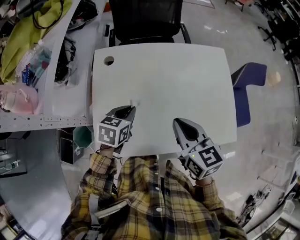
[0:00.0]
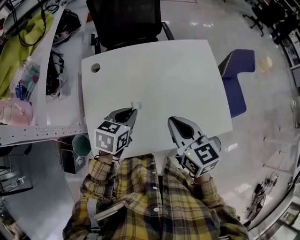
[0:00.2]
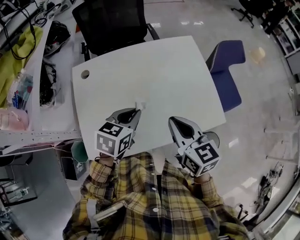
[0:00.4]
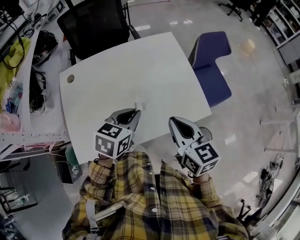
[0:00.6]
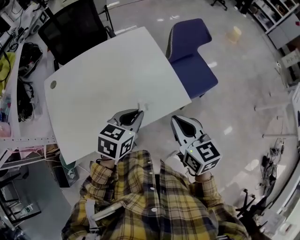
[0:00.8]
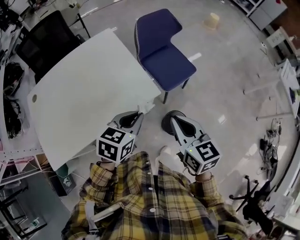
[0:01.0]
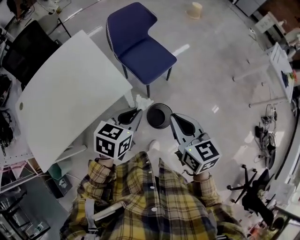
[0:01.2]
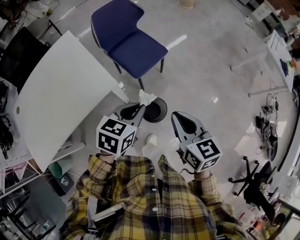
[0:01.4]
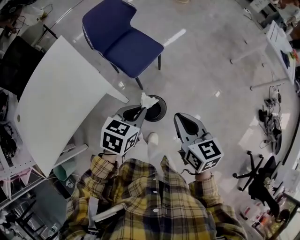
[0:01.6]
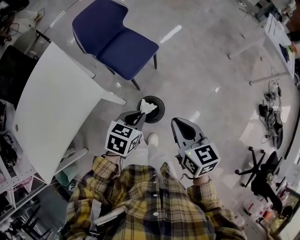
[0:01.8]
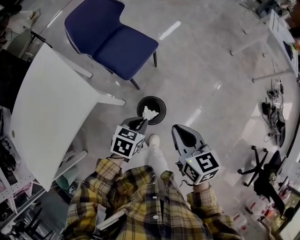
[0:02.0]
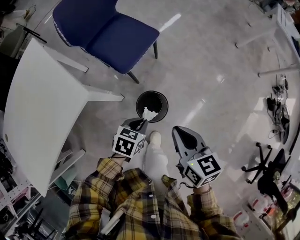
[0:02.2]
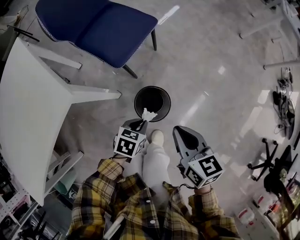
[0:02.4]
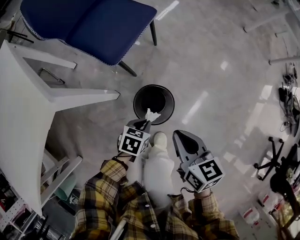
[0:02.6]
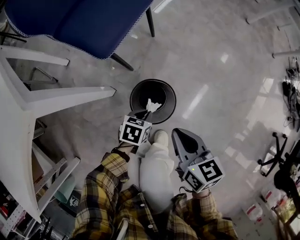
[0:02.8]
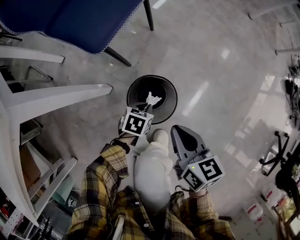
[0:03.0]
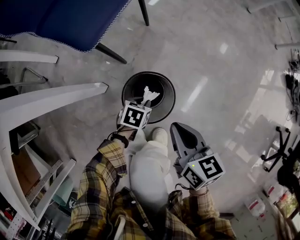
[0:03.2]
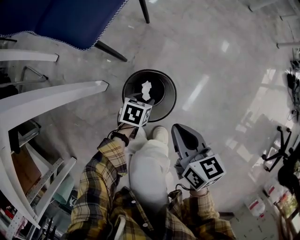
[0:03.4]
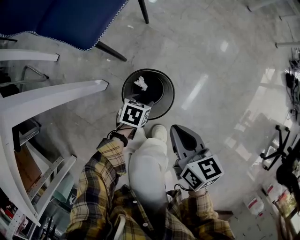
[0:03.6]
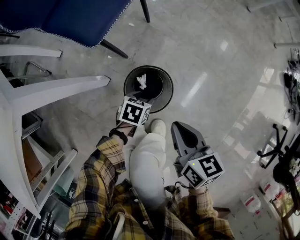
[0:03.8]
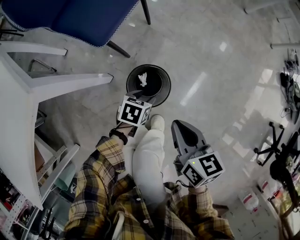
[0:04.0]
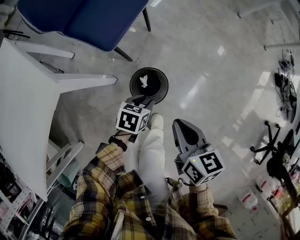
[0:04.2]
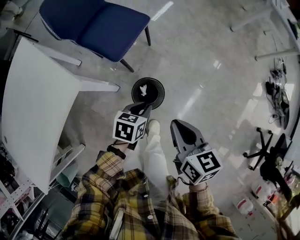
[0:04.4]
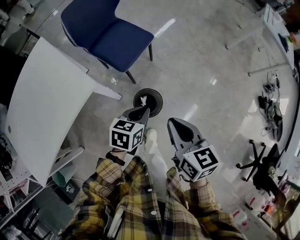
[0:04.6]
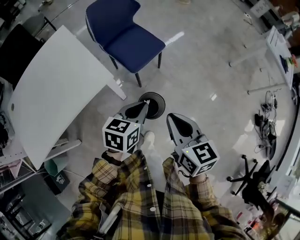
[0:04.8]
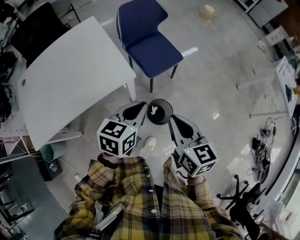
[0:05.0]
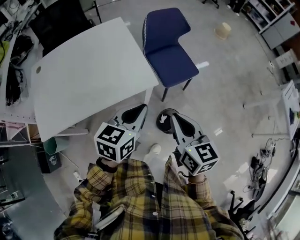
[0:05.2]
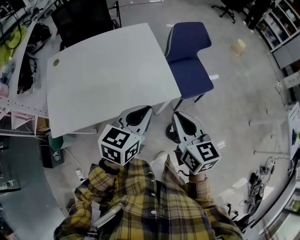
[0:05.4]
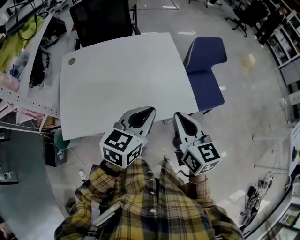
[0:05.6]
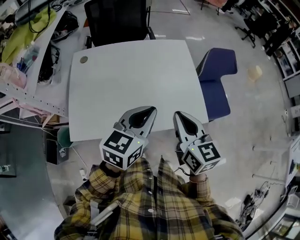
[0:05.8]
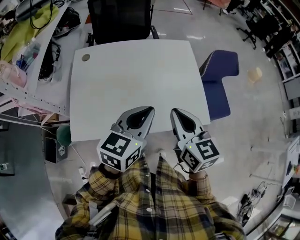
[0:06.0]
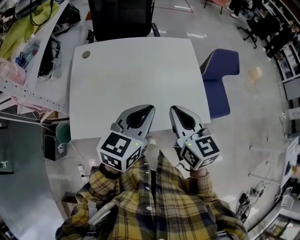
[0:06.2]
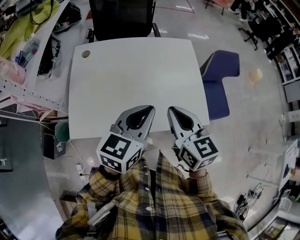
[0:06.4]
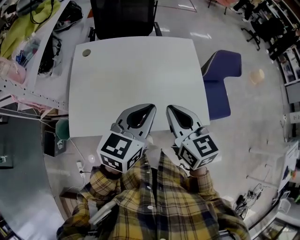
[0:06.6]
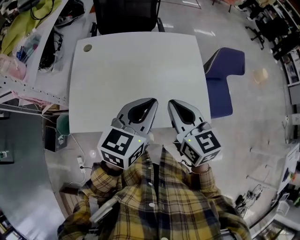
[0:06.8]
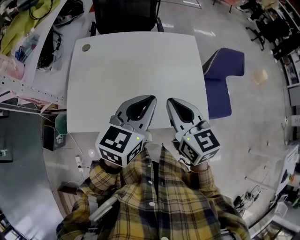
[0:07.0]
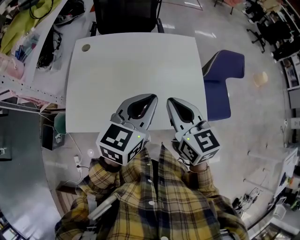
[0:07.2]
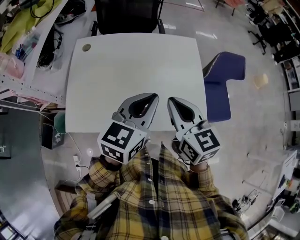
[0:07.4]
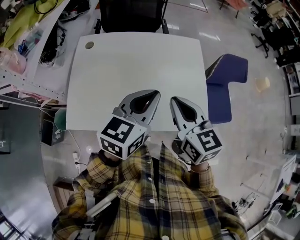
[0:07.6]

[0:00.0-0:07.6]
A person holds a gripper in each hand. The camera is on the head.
0:00.0 to 0:01.6: The pair of grippers is taken roughly 70 cm. The right gripper turns by approximately 40 degrees. The left gripper turns by roughly 50 degrees.
0:01.6 to 0:03.0: Both grippers move downward, roughly 50 cm. The left gripper swivels roughly 30 degrees; the right gripper changes its angle by approximately 20 degrees.
0:03.0 to 0:04.6: Both grippers travel together upward, some 40 cm. The left gripper swivels approximately 30 degrees, and opens, then closes again.
0:04.6 to 0:06.0: Both grippers are carried some 60 cm. The right gripper rotates about 50 degrees. Meanwhile the left gripper rotates roughly 50 degrees.
0:06.0 to 0:07.6: Both grippers travel together forward, about 5 cm.

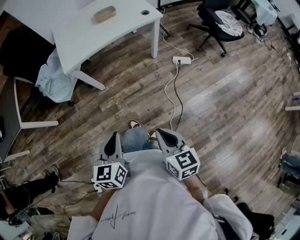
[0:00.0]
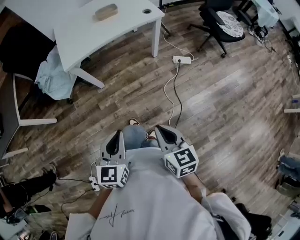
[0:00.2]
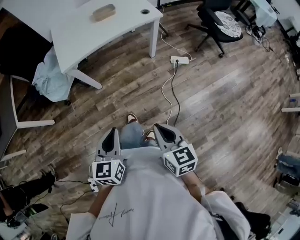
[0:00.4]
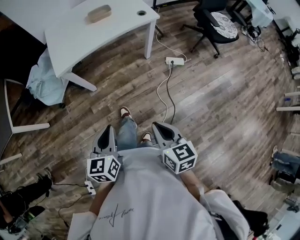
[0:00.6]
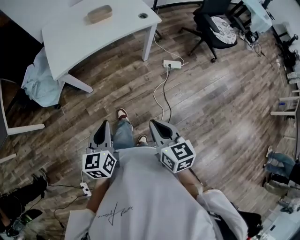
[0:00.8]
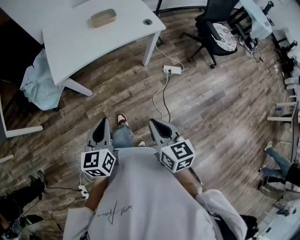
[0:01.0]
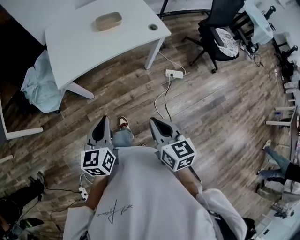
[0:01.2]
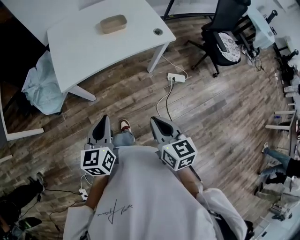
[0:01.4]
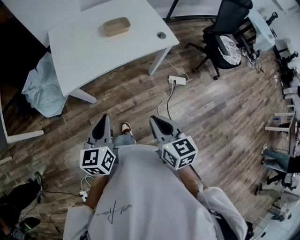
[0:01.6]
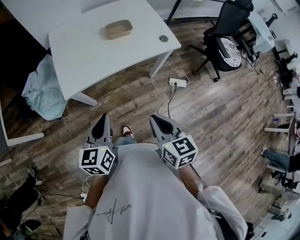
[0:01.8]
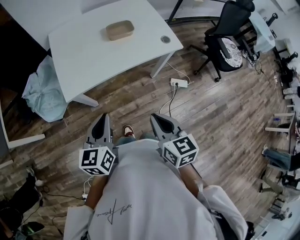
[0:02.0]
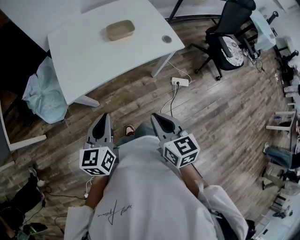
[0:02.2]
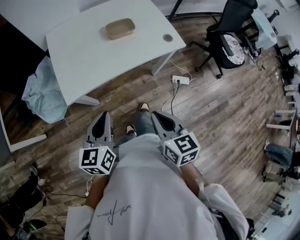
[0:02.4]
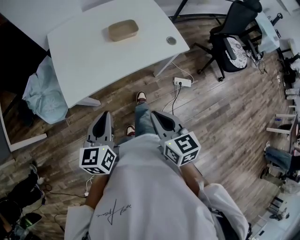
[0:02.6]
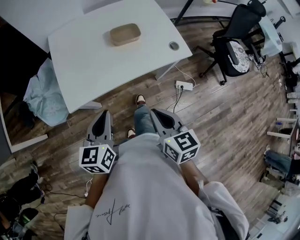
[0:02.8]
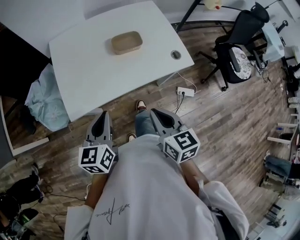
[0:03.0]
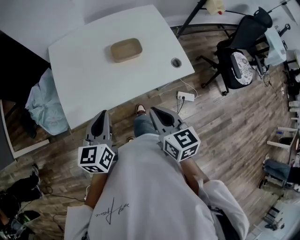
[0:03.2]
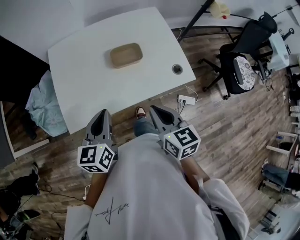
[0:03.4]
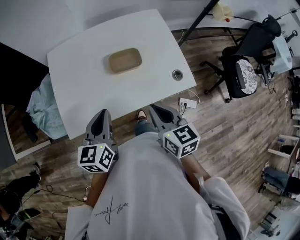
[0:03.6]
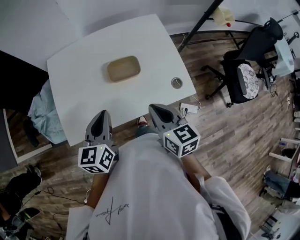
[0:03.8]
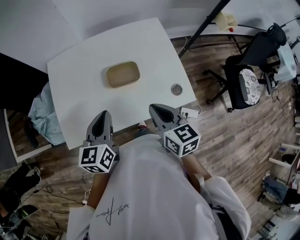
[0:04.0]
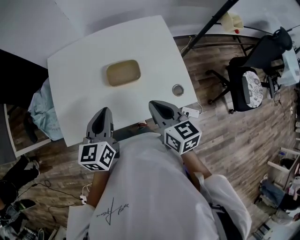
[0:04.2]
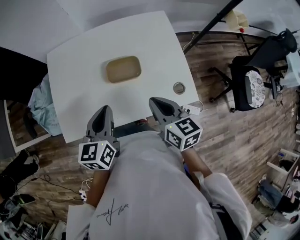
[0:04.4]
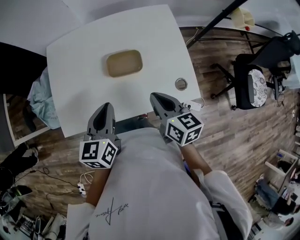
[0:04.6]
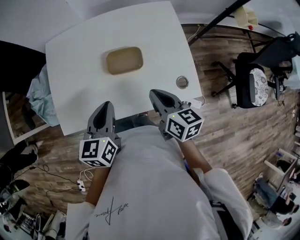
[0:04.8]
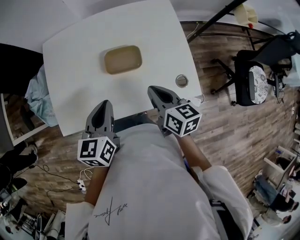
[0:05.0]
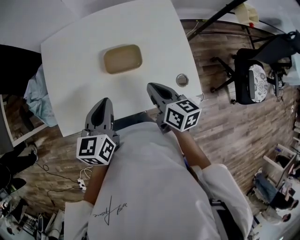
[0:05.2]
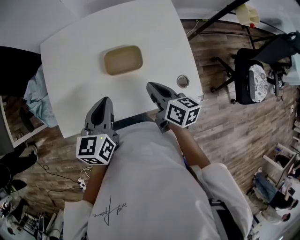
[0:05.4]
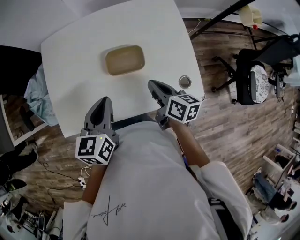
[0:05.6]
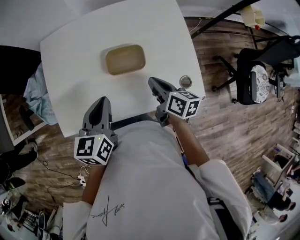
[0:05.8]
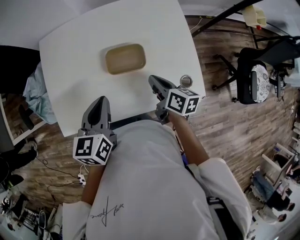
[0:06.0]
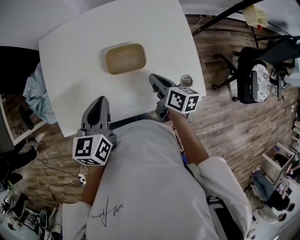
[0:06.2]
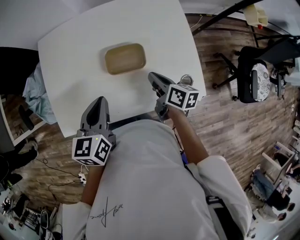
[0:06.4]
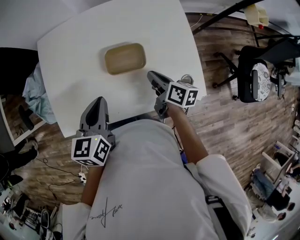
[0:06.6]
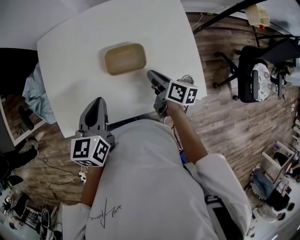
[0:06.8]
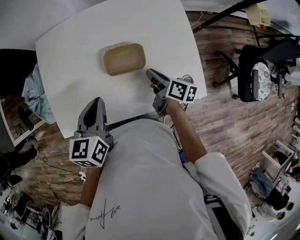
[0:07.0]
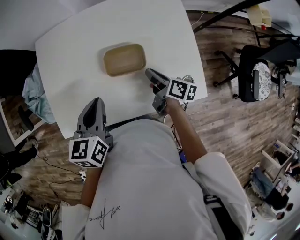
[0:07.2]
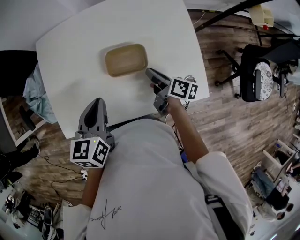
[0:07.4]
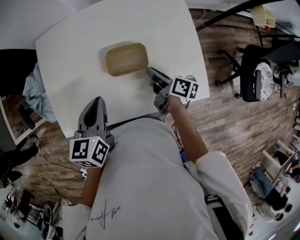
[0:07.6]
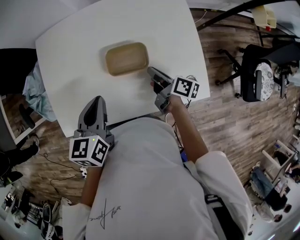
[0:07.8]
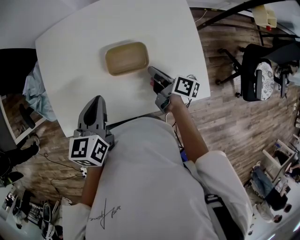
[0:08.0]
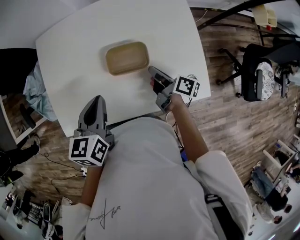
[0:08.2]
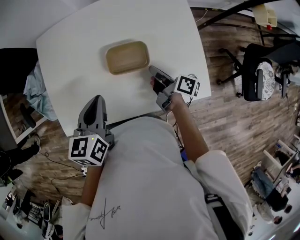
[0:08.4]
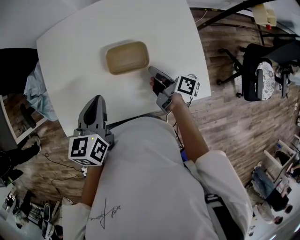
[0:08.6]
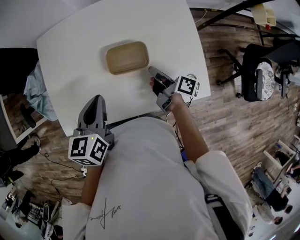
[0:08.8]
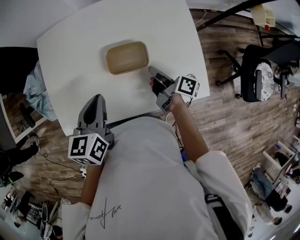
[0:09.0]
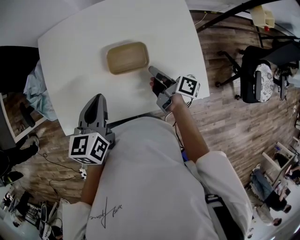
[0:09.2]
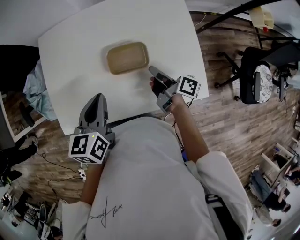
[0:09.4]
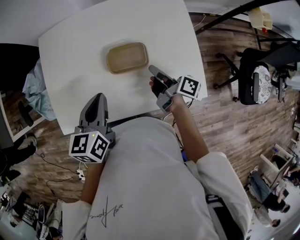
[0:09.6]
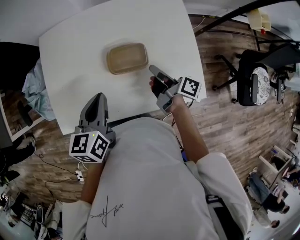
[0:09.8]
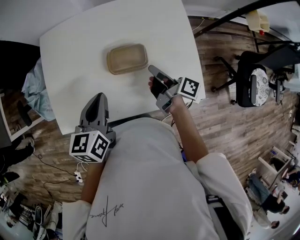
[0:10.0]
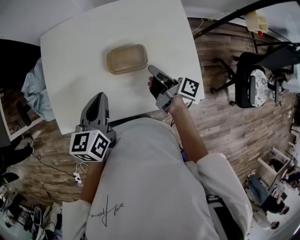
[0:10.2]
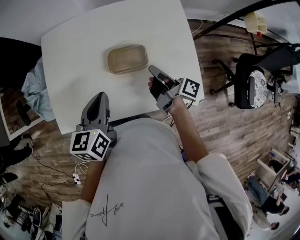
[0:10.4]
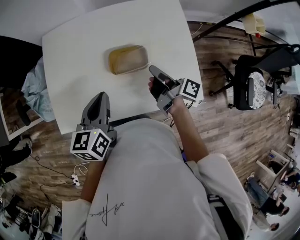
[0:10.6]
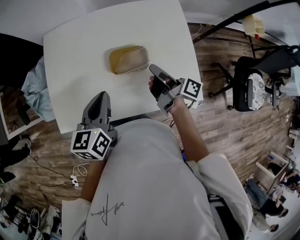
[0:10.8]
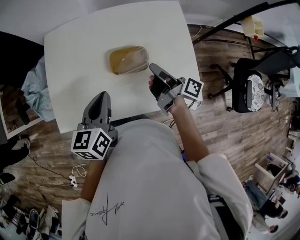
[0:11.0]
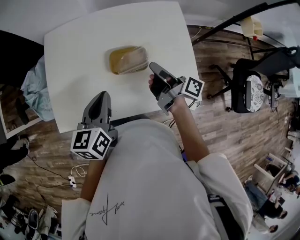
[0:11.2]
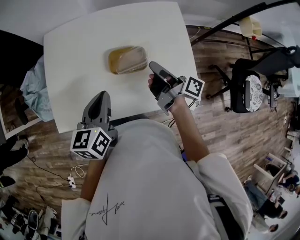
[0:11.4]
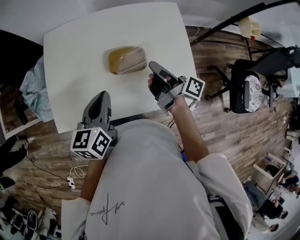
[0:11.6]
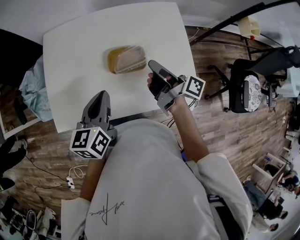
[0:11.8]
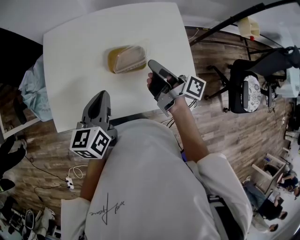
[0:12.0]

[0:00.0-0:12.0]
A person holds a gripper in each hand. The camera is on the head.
0:00.0 to 0:01.6: The two grippers go about 30 cm forward.
0:01.6 to 0:03.0: Both grippers move forward, approximately 20 cm.
0:03.0 to 0:04.4: The two grippers go about 20 cm forward and to the right.
0:04.4 to 0:06.0: The right gripper shifts about 15 cm downward and forward, and turns by roughly 30 degrees.
0:06.0 to 0:07.6: The right gripper shifts by approximately 5 cm, and swivels some 20 degrees.
0:07.6 to 0:09.0: There are only small adjustments of the grippers.
0:09.0 to 0:10.4: The right gripper moves upward, about 5 cm.
0:10.4 to 0:12.0: The right gripper is displaced upward by approximately 10 cm.

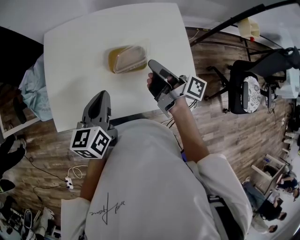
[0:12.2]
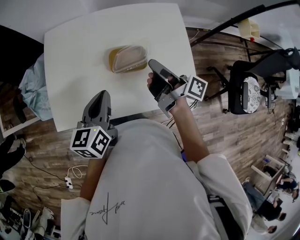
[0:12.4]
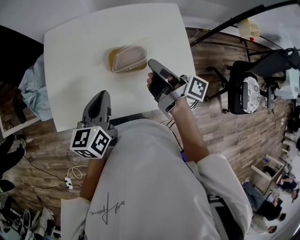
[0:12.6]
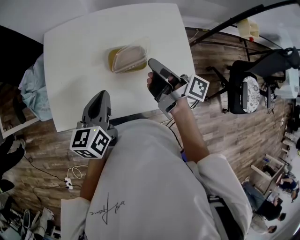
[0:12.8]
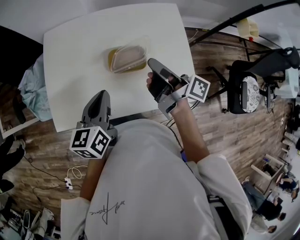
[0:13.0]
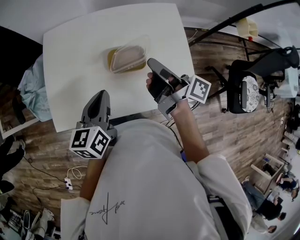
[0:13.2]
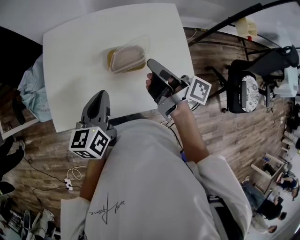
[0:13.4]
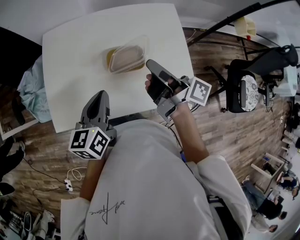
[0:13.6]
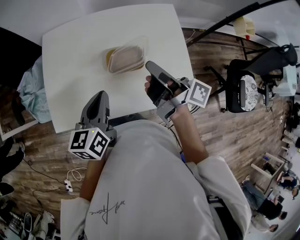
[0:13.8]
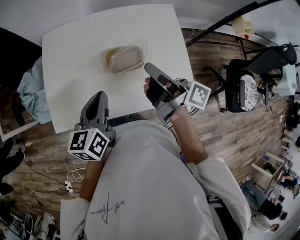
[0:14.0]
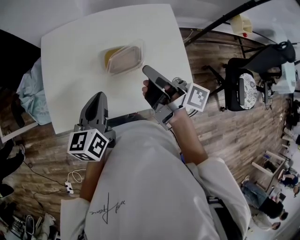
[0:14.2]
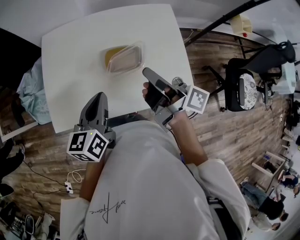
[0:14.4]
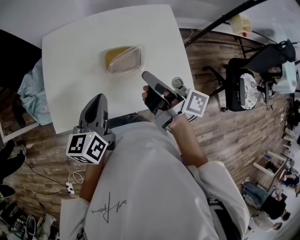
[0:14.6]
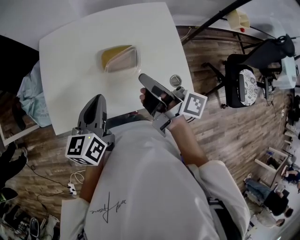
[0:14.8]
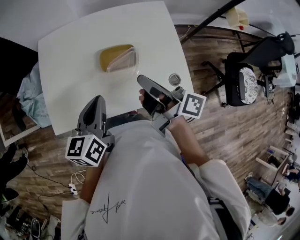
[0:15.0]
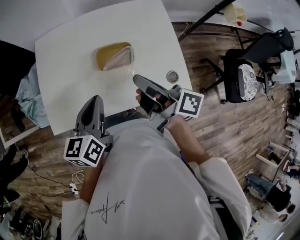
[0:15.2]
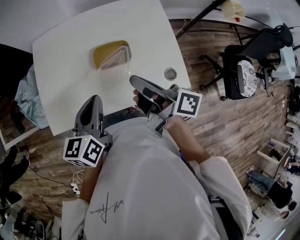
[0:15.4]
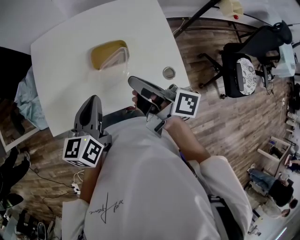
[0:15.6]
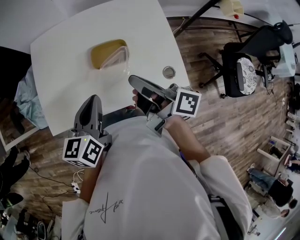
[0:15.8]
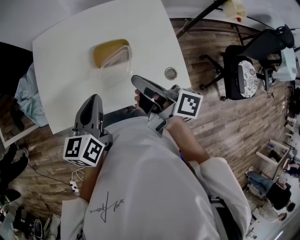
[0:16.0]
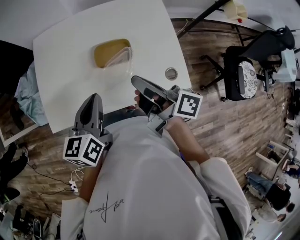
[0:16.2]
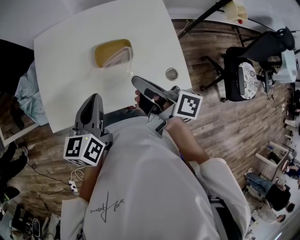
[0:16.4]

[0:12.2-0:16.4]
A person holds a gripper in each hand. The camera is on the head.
0:12.2 to 0:13.6: The right gripper goes some 5 cm upward.
0:13.6 to 0:15.0: The right gripper goes approximately 5 cm backward.
0:15.0 to 0:16.4: There are only small adjustments of the grippers.
